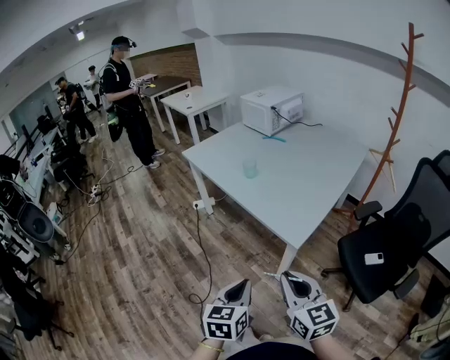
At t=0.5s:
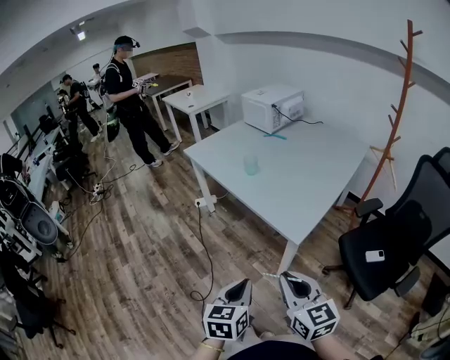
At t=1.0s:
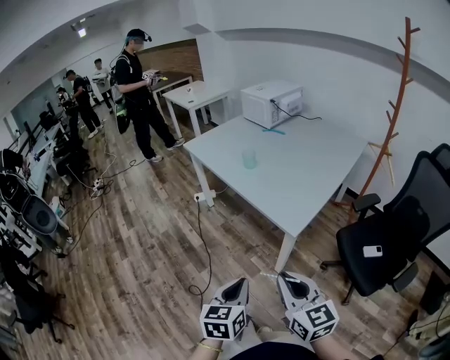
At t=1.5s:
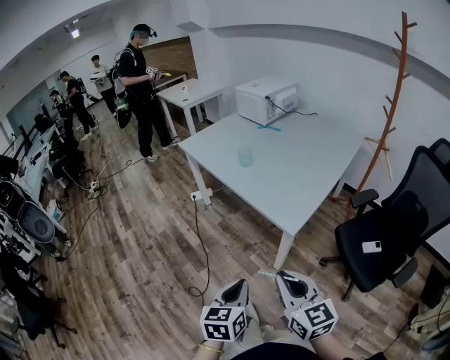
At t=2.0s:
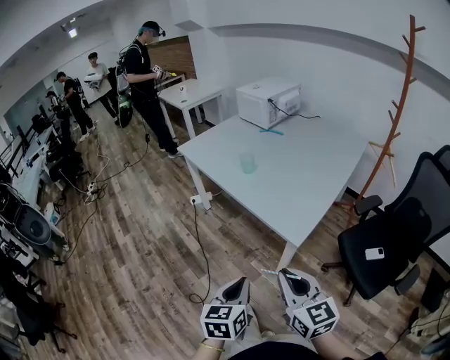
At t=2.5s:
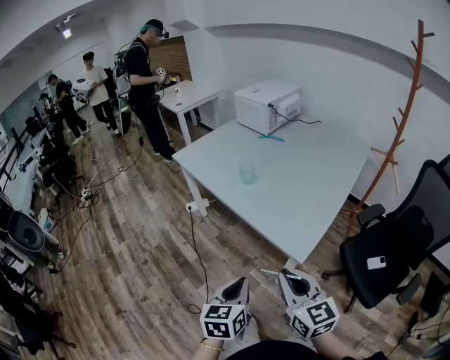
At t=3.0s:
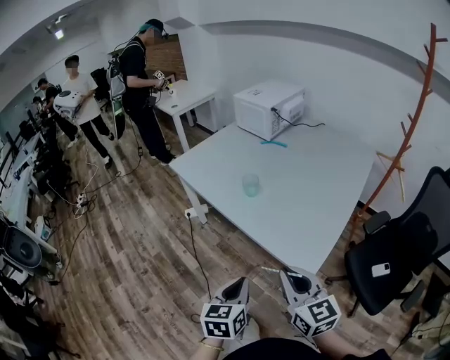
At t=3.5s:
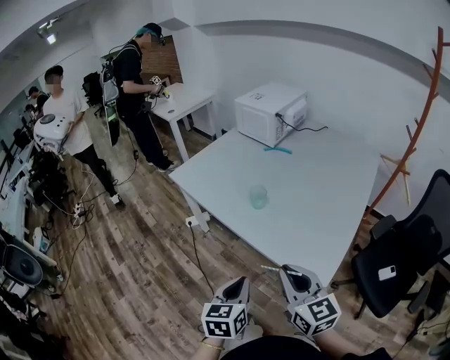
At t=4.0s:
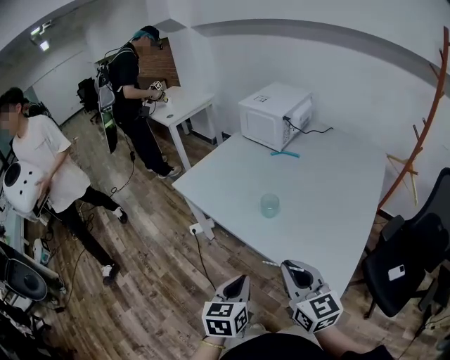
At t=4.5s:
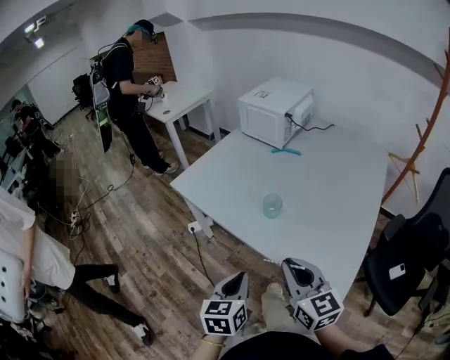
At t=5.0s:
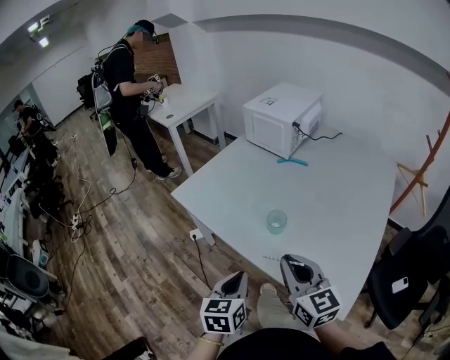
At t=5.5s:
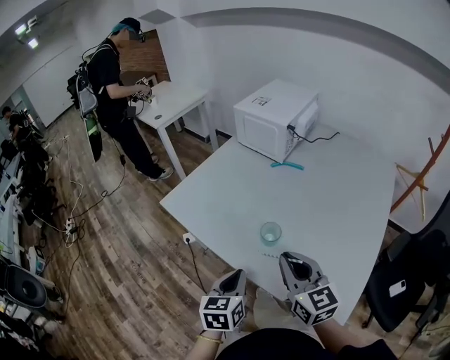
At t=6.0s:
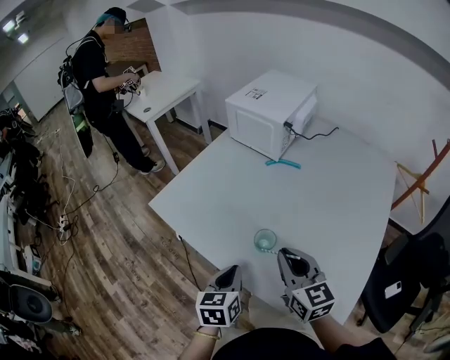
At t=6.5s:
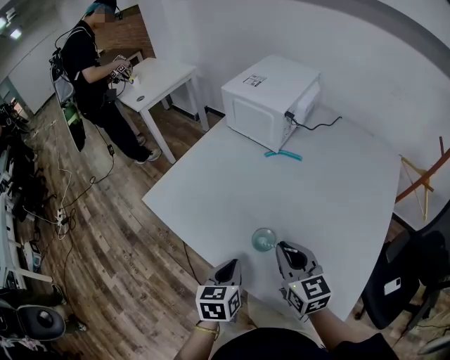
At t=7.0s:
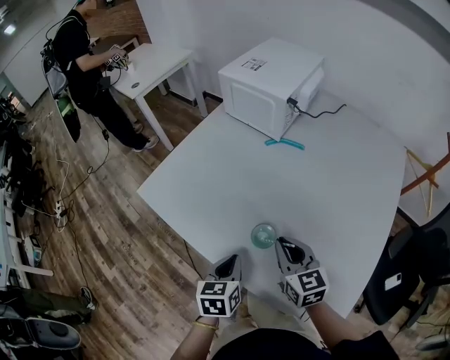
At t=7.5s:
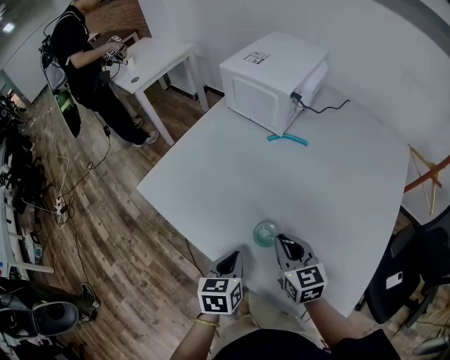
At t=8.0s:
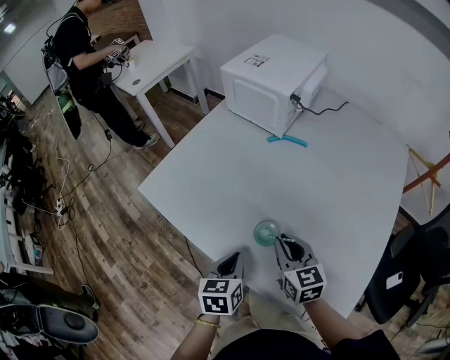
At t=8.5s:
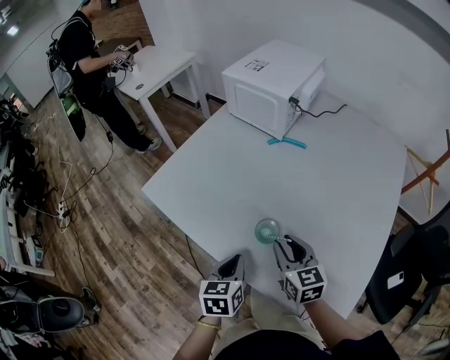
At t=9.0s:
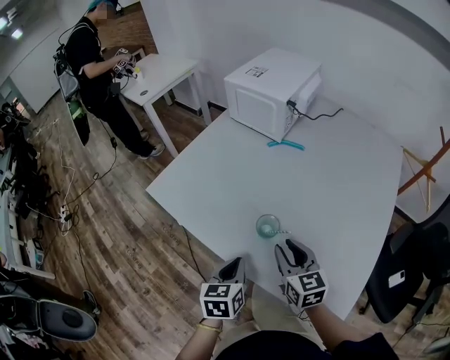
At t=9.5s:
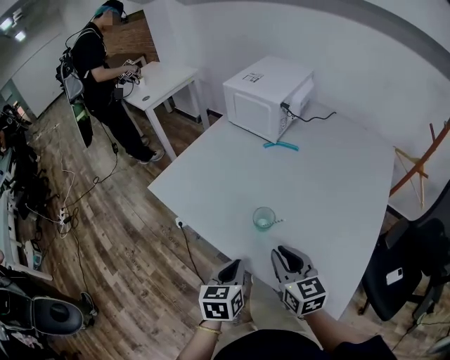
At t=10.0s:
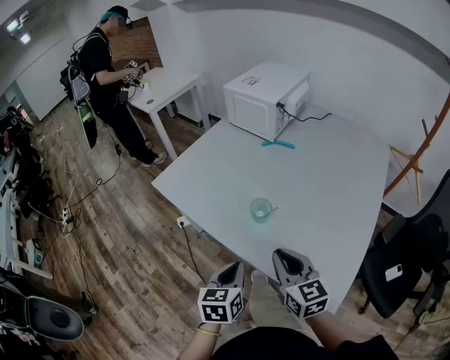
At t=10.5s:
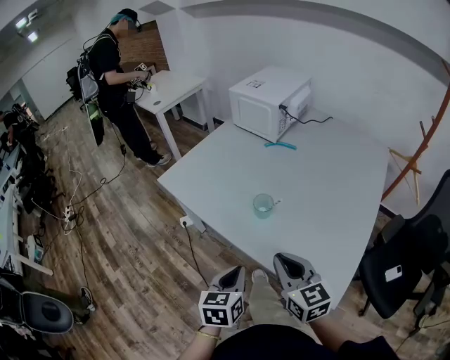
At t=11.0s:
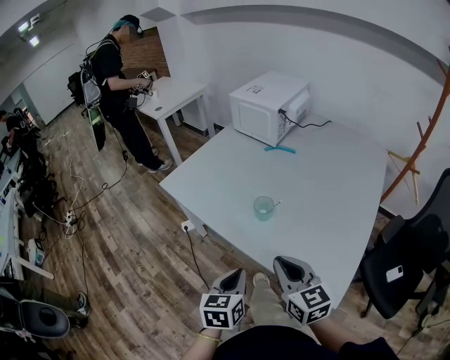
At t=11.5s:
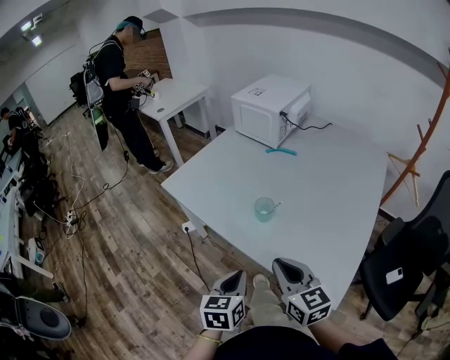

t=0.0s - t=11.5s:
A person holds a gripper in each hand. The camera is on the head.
t=0.0s - t=2.0s: The grippers stay close to where they were, moving slightly.
t=2.0s - t=4.0s: The grippers both shift forward and to the left by some 30 cm.
t=4.0s - t=6.0s: The two grippers go some 20 cm forward.
t=6.0s - t=7.5s: The right gripper is displaced downward and forward by approximately 10 cm; the left gripper is displaced downward by roughly 5 cm.
t=7.5s - t=9.5s: Both grippers travel together backward, roughly 10 cm.
t=9.5s - t=11.5s: The two grippers go some 10 cm backward.

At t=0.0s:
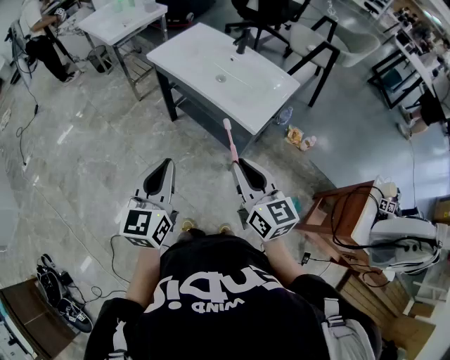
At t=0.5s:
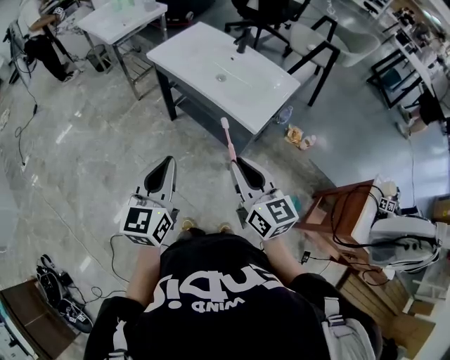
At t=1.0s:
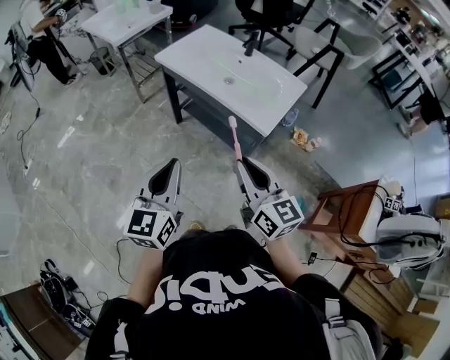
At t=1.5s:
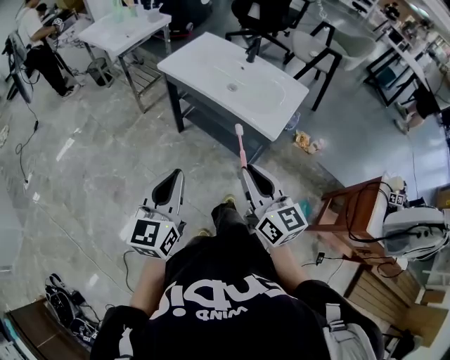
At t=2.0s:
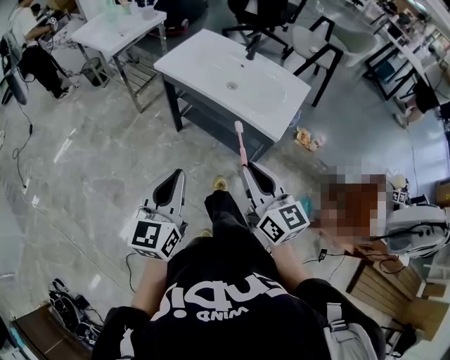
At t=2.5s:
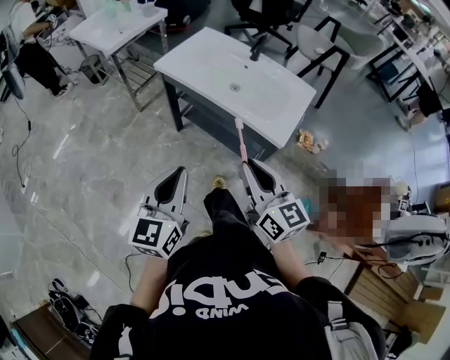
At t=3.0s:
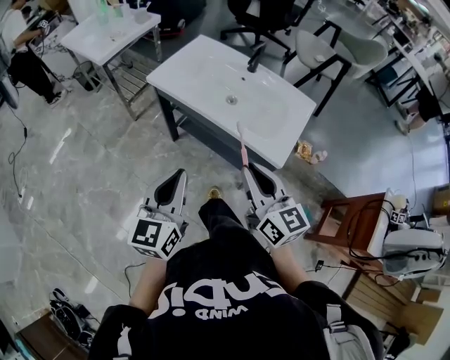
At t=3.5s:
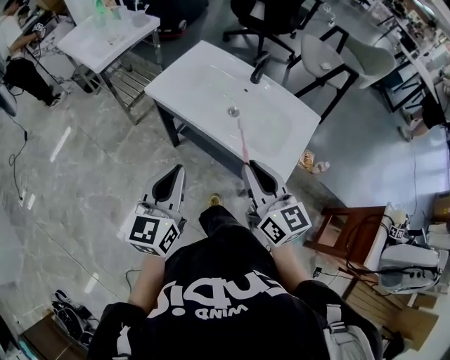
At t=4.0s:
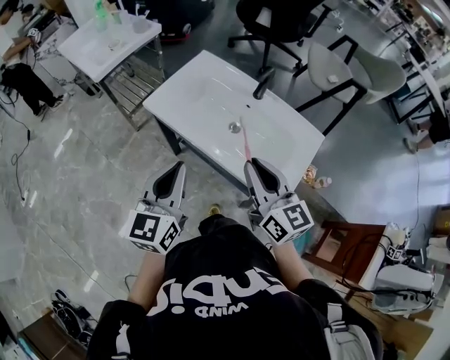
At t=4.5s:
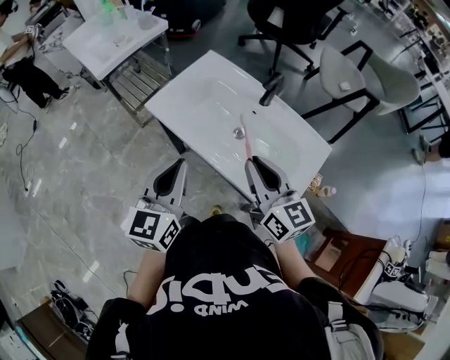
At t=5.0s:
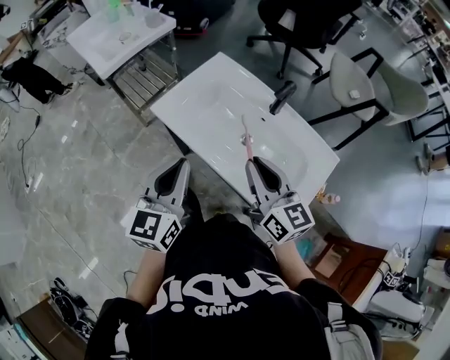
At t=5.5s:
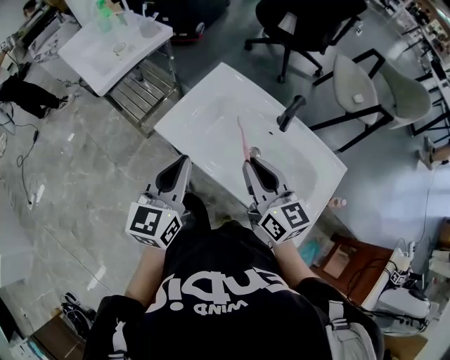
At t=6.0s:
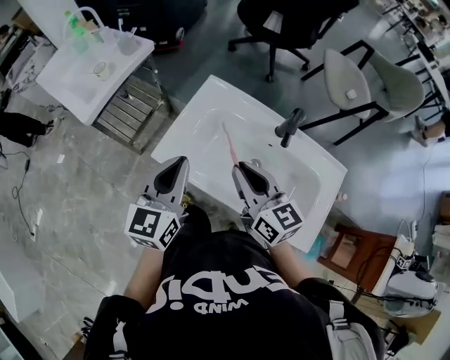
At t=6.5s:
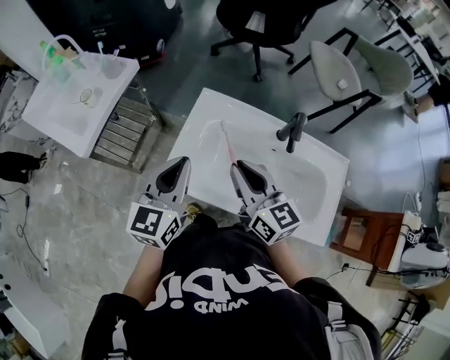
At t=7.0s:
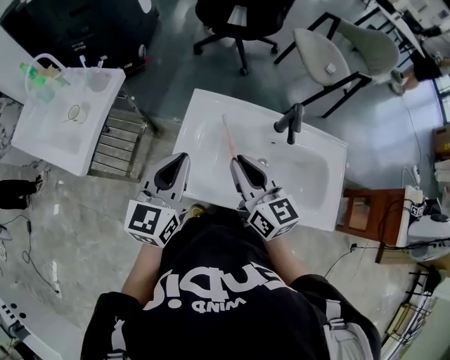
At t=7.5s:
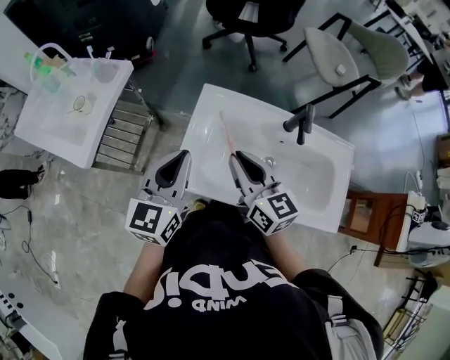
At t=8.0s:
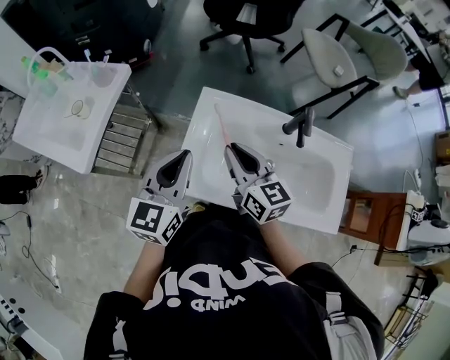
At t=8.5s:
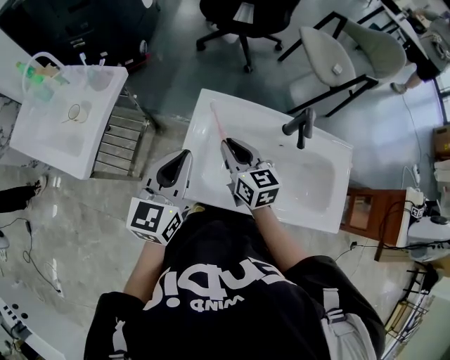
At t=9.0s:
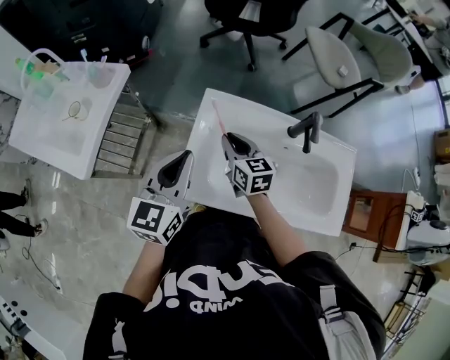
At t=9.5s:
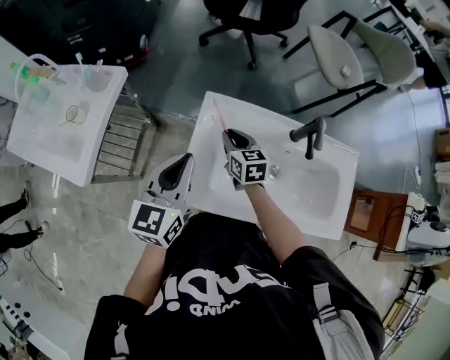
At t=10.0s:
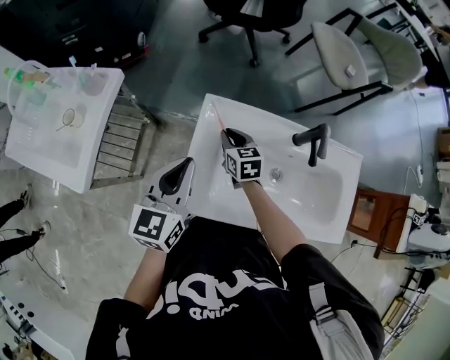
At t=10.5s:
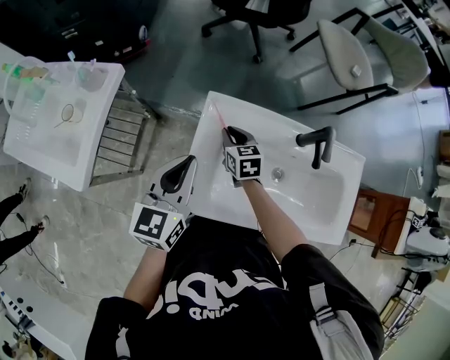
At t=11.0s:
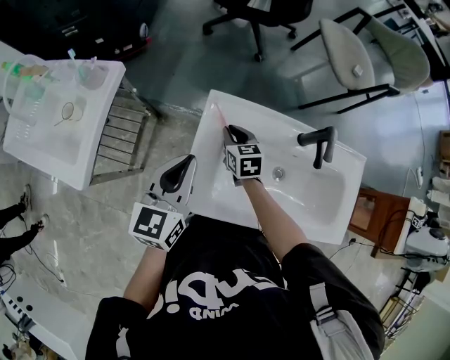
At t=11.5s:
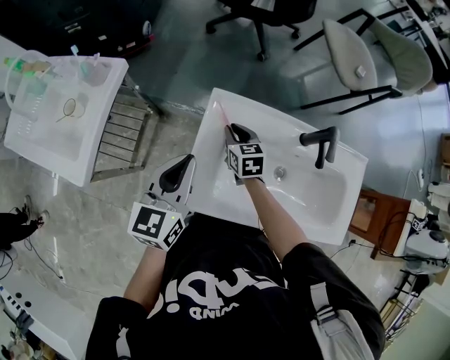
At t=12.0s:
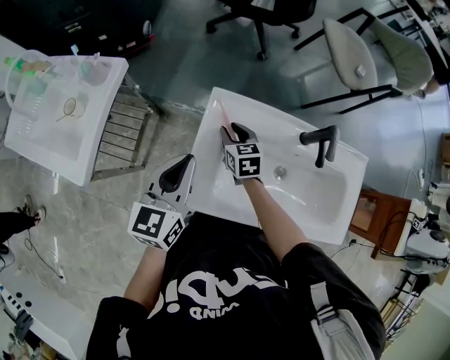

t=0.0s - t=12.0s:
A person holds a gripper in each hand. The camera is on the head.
t=0.0s - t=2.0s: The two grippers go approximately 10 cm to the left.
t=2.0s - t=4.0s: Both grippers move forward, some 30 cm.
t=4.0s - t=6.0s: The left gripper travels forward by about 25 cm. Meanwhile the right gripper is displaced forward and to the left by roughly 25 cm.
t=6.0s - t=8.0s: Both grippers travel together forward and to the left, approximately 15 cm.
t=8.0s - t=10.0s: The right gripper is displaced downward and forward by roughly 25 cm, and turns by roughly 30 degrees; the left gripper shifts roughly 5 cm forward.
t=10.0s - t=12.0s: The grippers move only a little.

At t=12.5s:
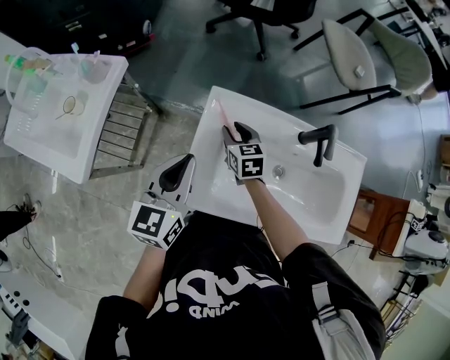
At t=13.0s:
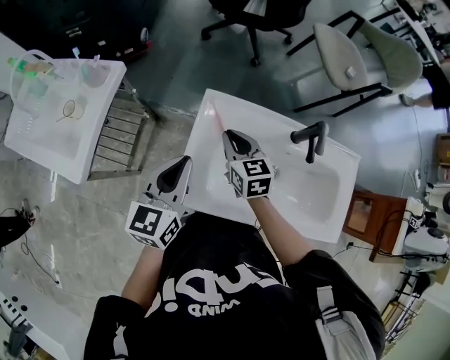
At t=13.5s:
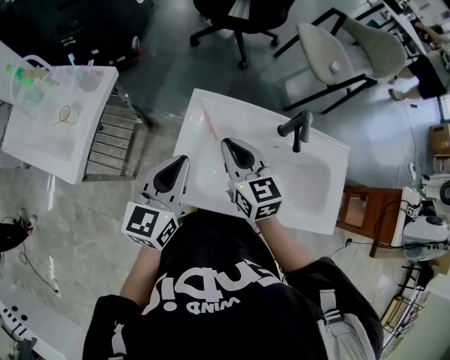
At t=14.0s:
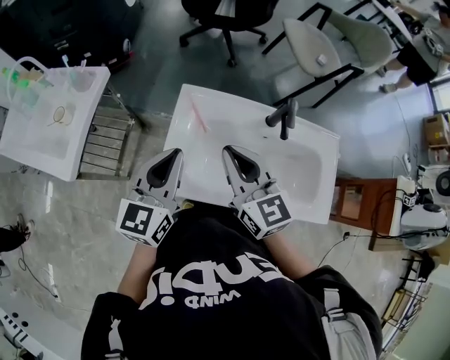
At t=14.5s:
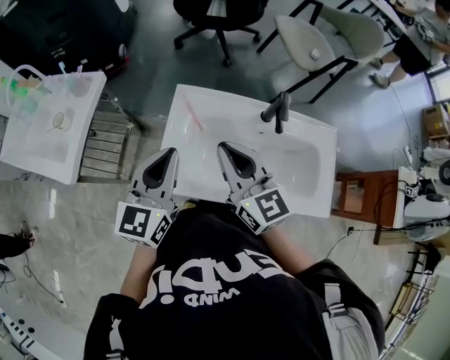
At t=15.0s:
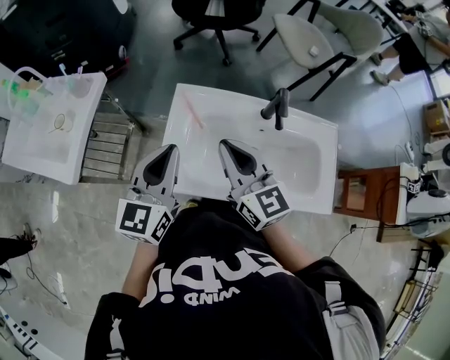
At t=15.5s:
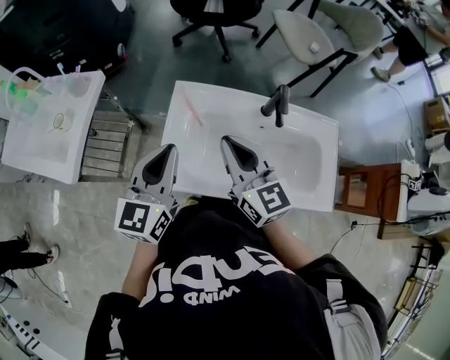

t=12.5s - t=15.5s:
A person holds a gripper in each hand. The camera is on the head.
t=12.5s - t=14.0s: The right gripper heads upward and backward, covering about 30 cm, rotates approximately 30 degrees, and closes. The left gripper travels backward and upward by some 10 cm.
t=14.0s - t=15.5s: There are only small adjustments of the grippers.
